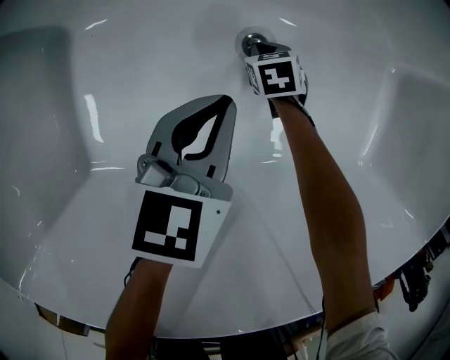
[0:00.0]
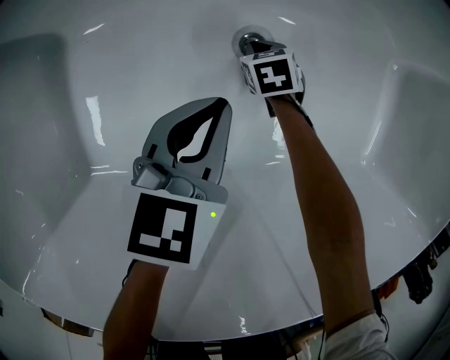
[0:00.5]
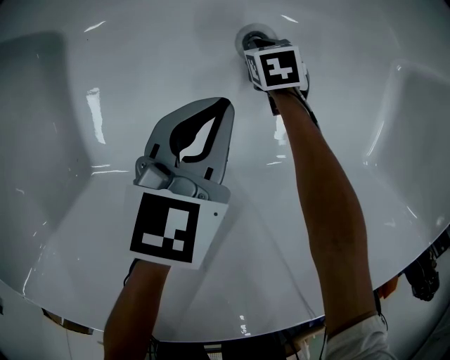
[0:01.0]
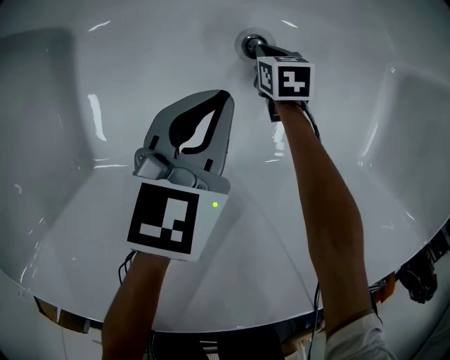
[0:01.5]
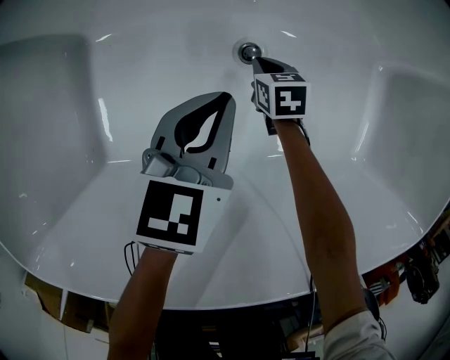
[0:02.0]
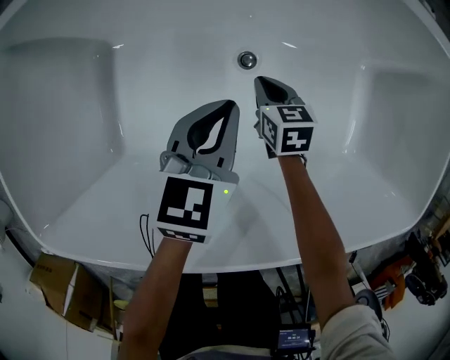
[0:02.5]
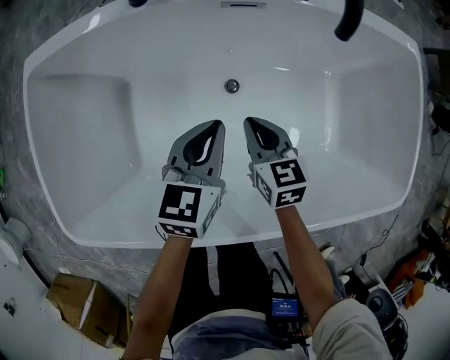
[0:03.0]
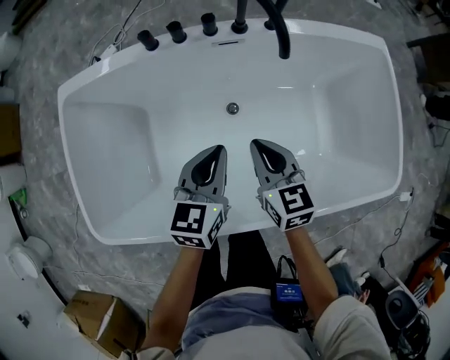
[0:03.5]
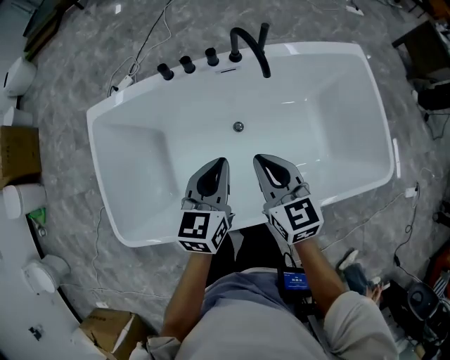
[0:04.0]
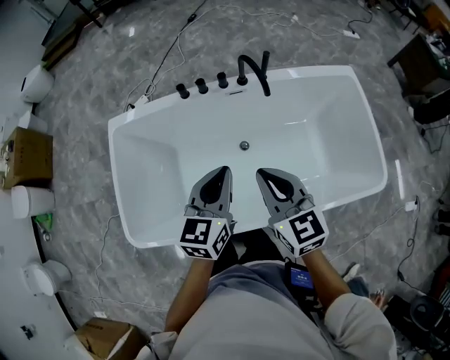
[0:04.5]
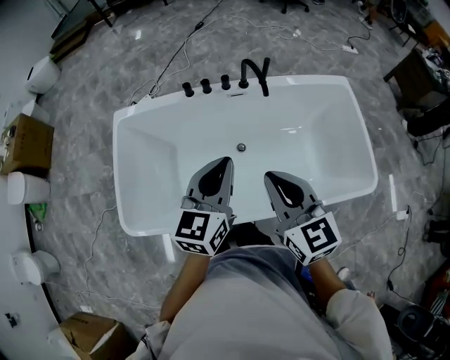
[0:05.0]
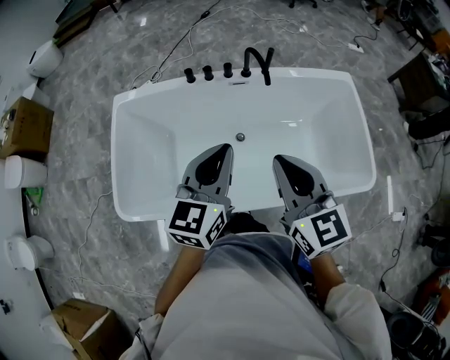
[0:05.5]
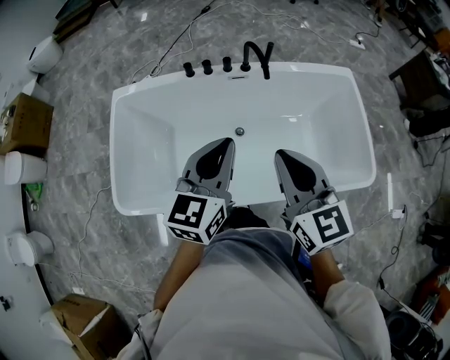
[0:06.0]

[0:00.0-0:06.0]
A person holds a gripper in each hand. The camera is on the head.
0:00.0 to 0:02.0: Both grippers travel together upward, about 5 cm.
0:02.0 to 0:04.0: The two grippers go approximately 60 cm upward. The right gripper angles its fingers upward, by roughly 40 degrees.
0:04.0 to 0:06.0: Both grippers travel together upward and backward, roughly 25 cm.

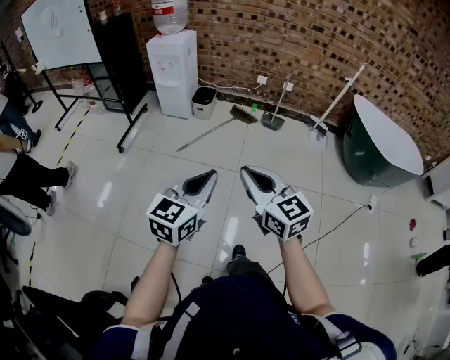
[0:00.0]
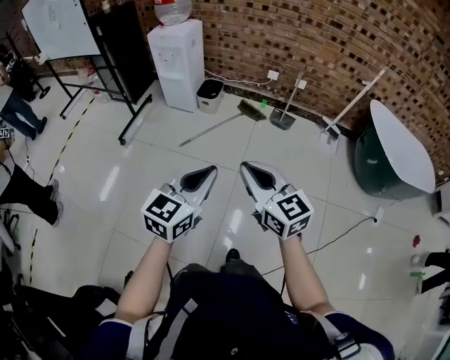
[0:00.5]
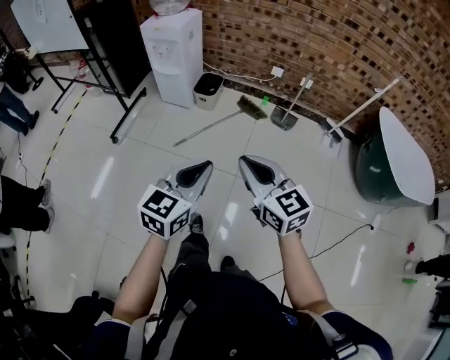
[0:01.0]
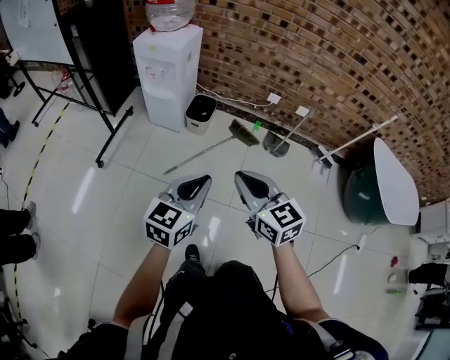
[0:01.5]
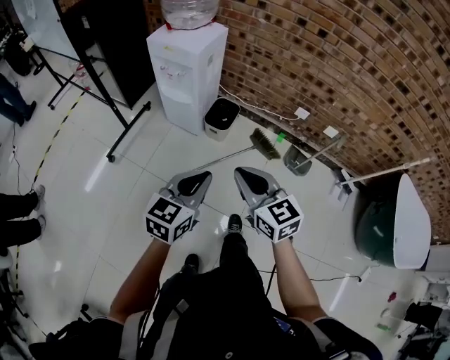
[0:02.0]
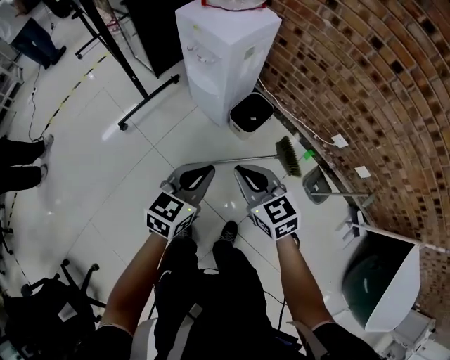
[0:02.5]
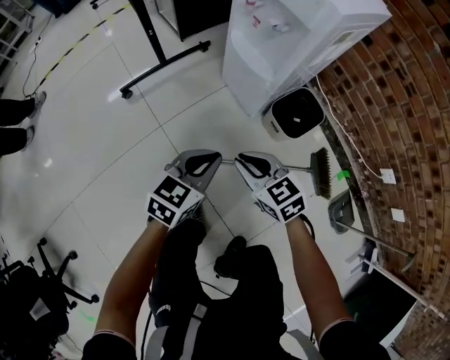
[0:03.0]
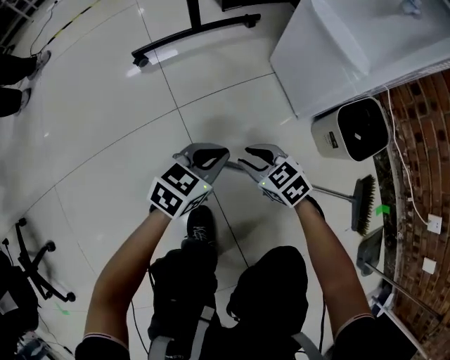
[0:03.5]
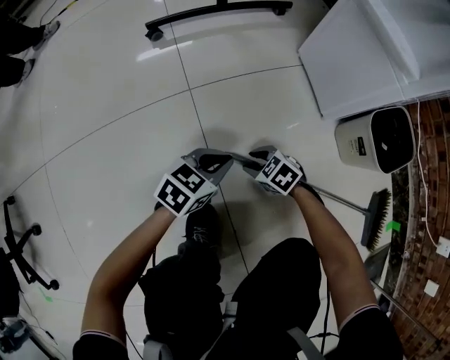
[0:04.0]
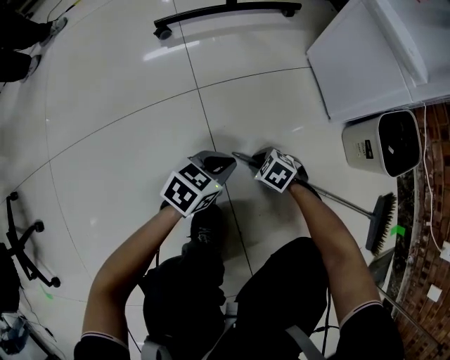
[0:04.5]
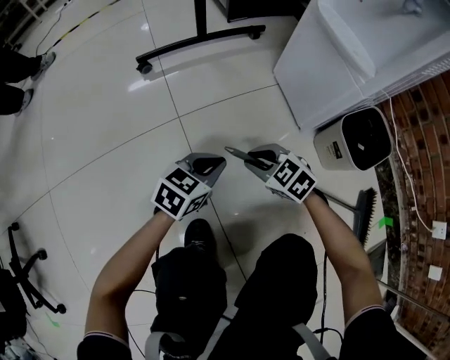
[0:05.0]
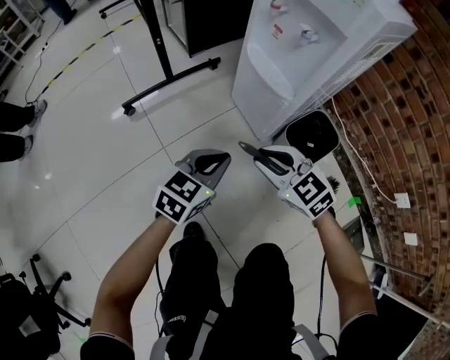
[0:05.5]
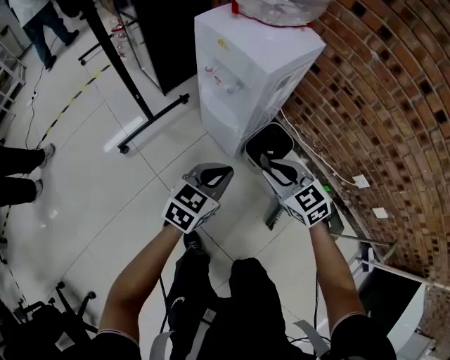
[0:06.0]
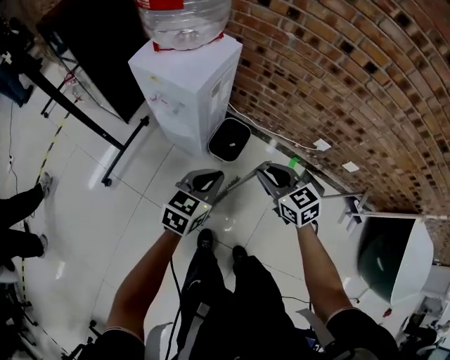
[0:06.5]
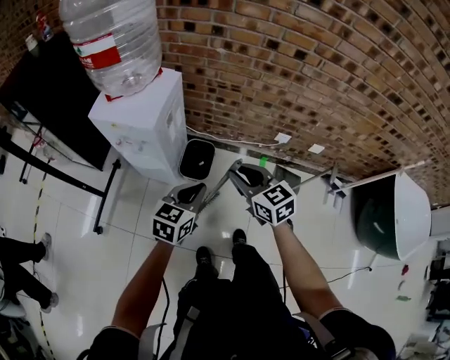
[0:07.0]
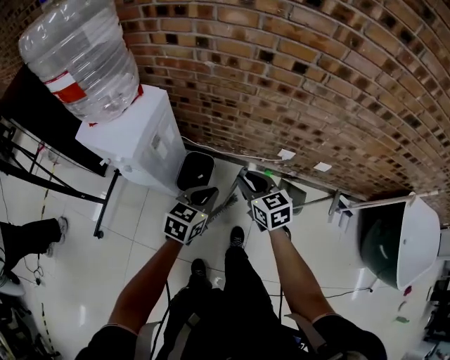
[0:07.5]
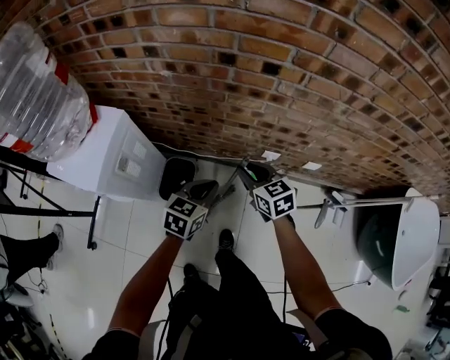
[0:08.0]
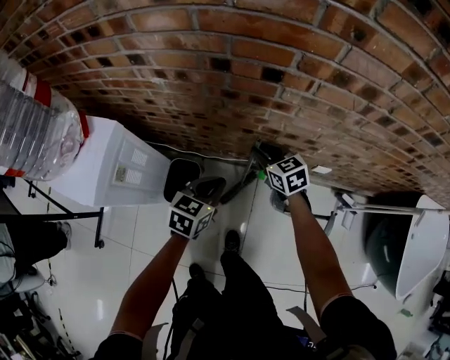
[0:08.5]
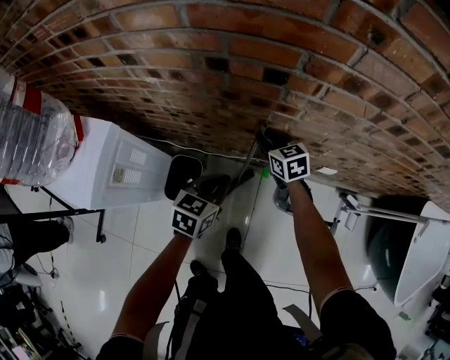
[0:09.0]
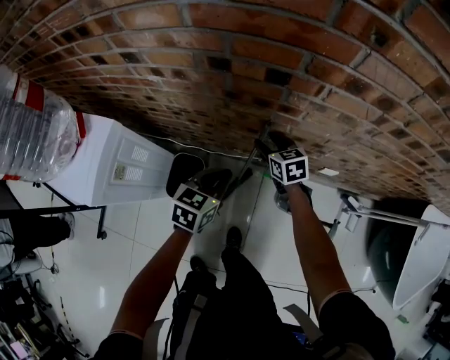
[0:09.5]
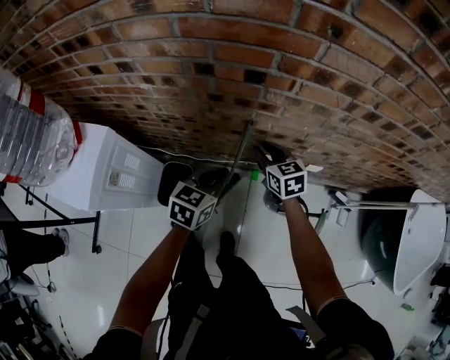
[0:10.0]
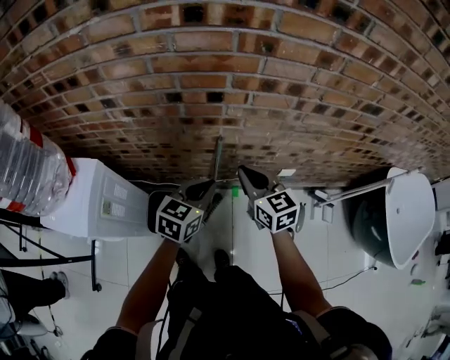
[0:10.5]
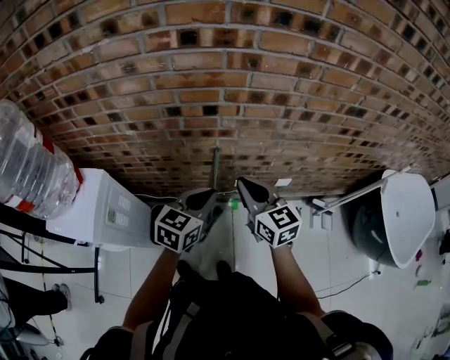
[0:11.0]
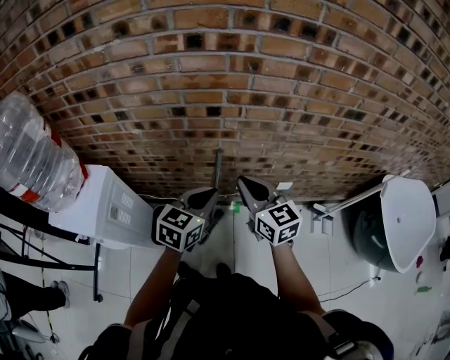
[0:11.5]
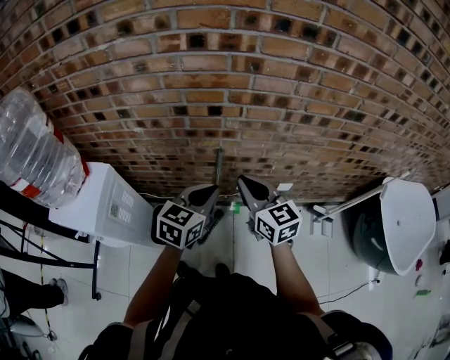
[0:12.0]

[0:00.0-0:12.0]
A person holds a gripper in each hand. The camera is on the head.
0:00.0 to 0:02.0: Both grippers are carried forward, roughly 50 cm.
0:02.0 to 0:04.0: The two grippers go approximately 80 cm downward. The left gripper changes its angle by roughly 40 degrees. Meanwhile the right gripper points its fingers about 40 degrees further downward, and opens its fingers.
0:04.0 to 0:06.0: Both grippers move upward, roughly 60 cm. The left gripper rotates approximately 30 degrees. Meanwhile the right gripper changes its angle by approximately 50 degrees.
0:06.0 to 0:08.0: The right gripper moves roughly 40 cm, and turns by about 50 degrees; the left gripper shifts by approximately 40 cm, and turns by roughly 30 degrees.
0:08.0 to 0:10.0: Both grippers move forward and to the right, about 10 cm. The right gripper opens, then closes once more.
0:10.0 to 0:12.0: The left gripper moves upward, some 15 cm; the right gripper moves upward and backward, approximately 25 cm, rotates some 20 degrees, and closes its fingers.

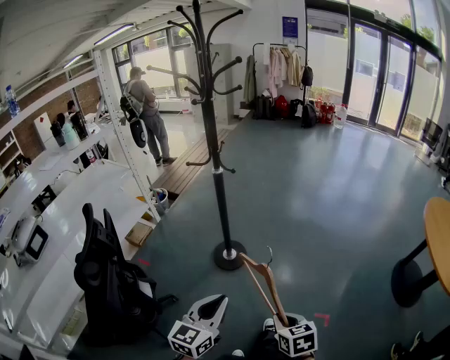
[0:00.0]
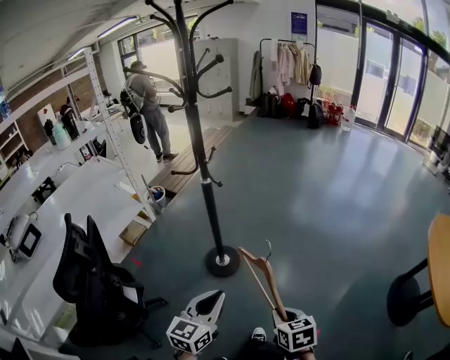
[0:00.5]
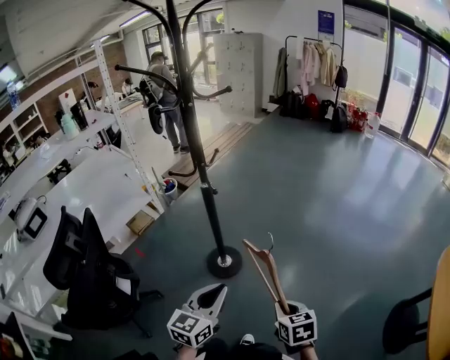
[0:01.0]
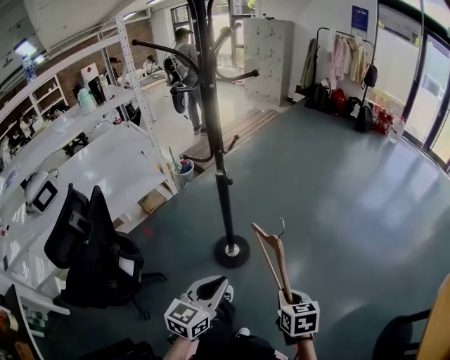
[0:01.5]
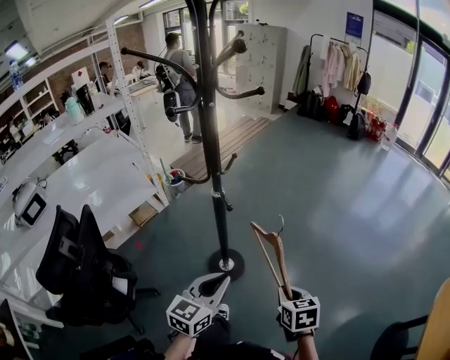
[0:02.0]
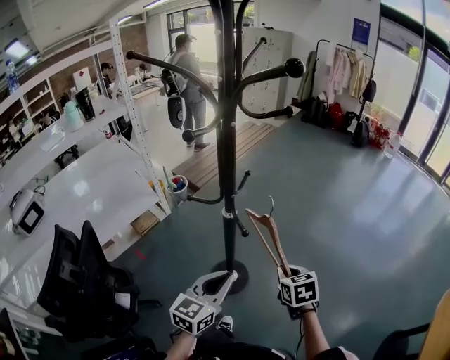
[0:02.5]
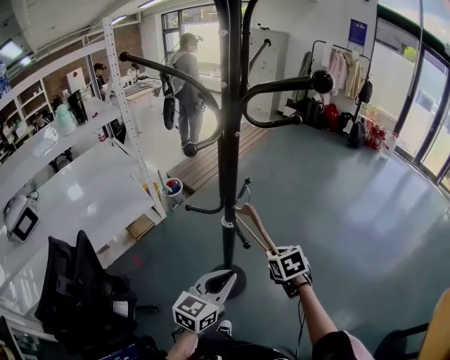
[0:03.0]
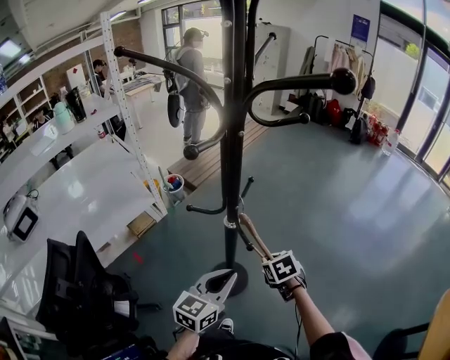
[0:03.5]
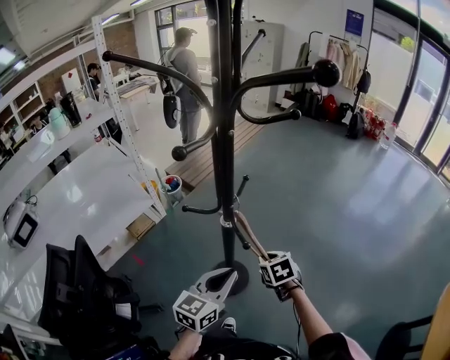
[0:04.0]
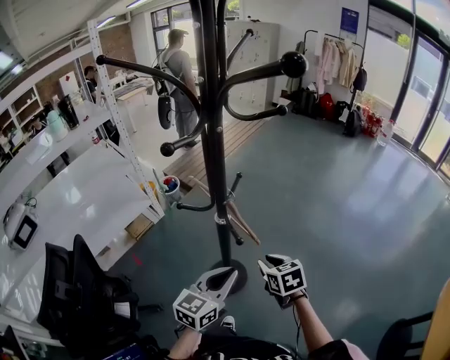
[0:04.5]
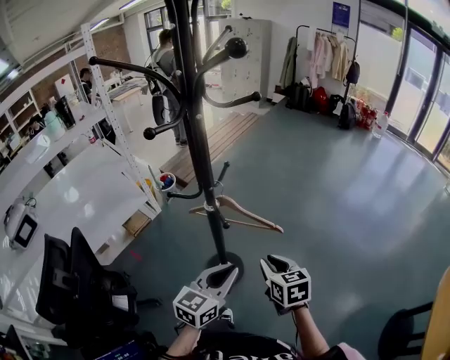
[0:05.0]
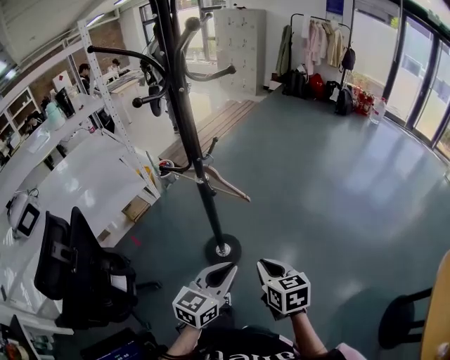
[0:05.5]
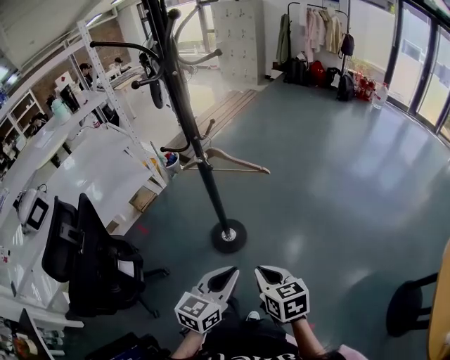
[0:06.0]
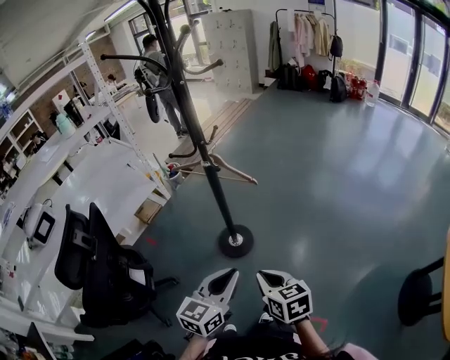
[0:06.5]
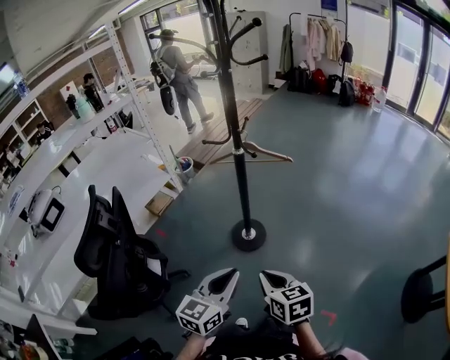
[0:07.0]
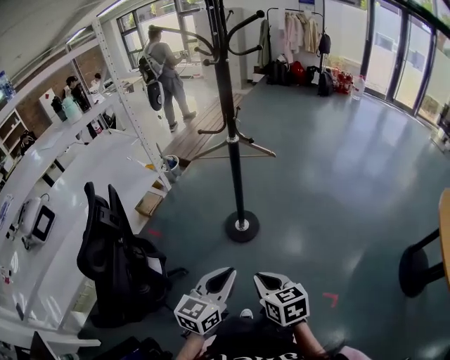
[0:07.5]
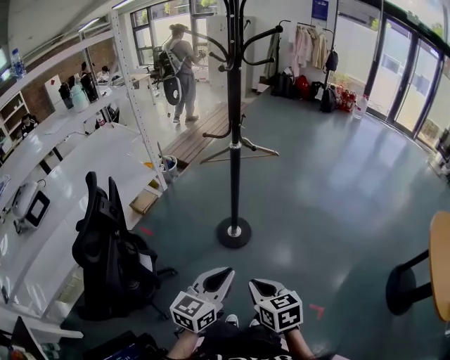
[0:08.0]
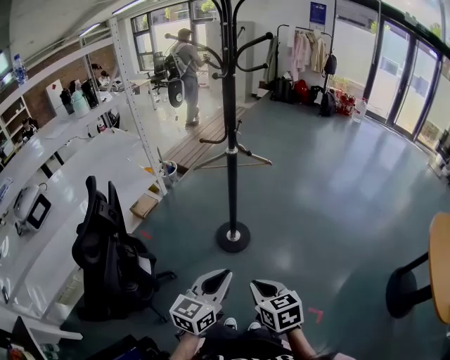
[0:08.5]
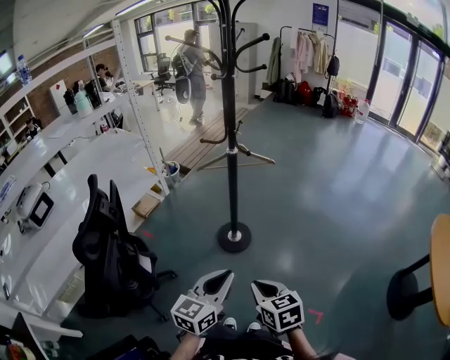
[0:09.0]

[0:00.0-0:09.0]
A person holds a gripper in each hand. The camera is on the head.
0:00.0 to 0:02.0: The grippers both shift forward by some 35 cm.
0:02.0 to 0:04.5: The right gripper heads forward and to the left, covering about 25 cm, while the left gripper is displaced forward by about 15 cm.
0:04.5 to 0:07.0: Both grippers move backward, about 35 cm.
0:07.0 to 0:09.0: The grippers both shift backward by roughly 5 cm.
